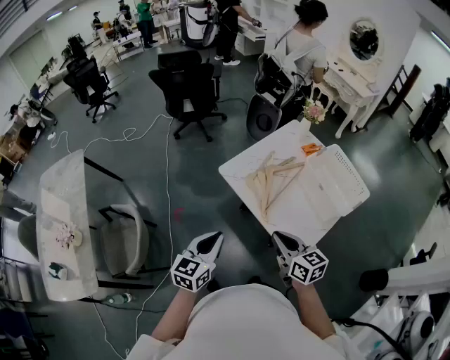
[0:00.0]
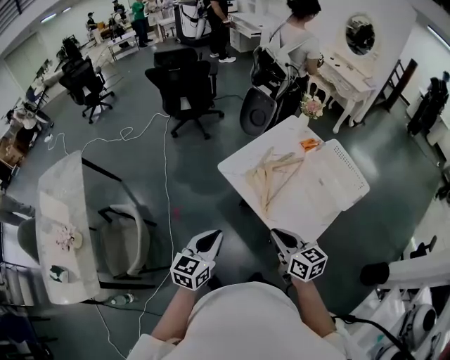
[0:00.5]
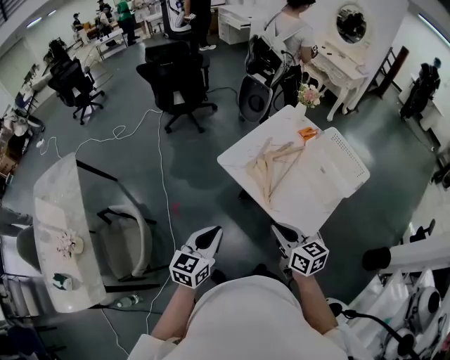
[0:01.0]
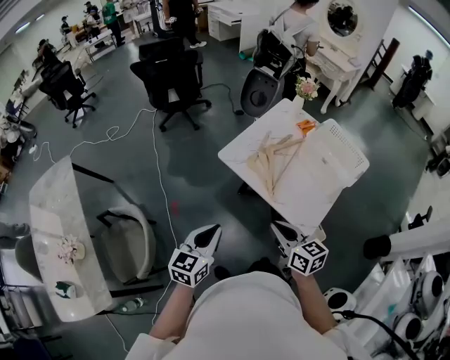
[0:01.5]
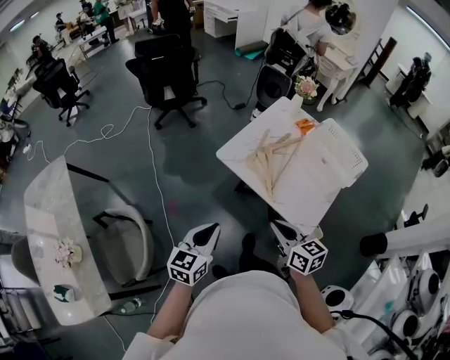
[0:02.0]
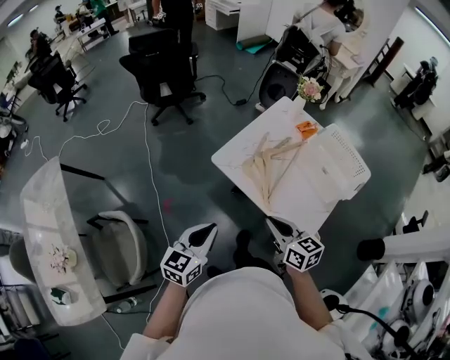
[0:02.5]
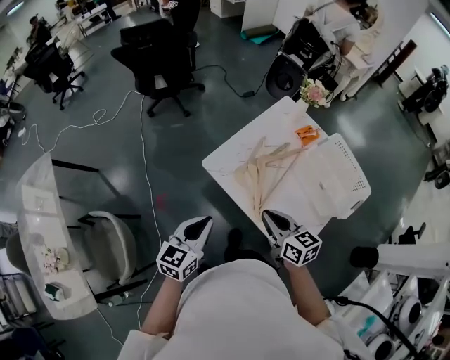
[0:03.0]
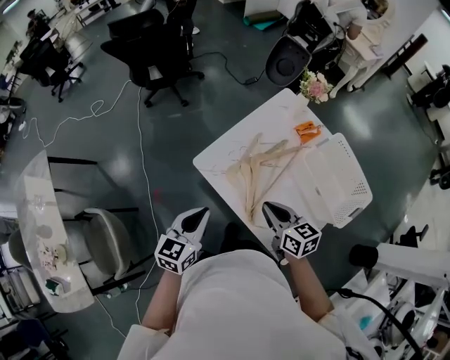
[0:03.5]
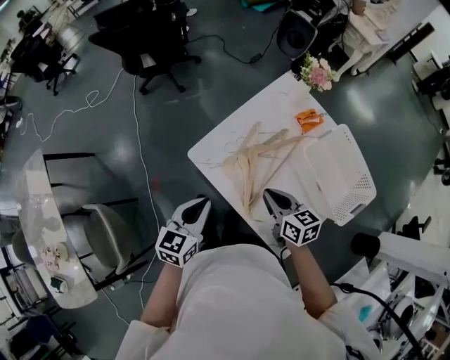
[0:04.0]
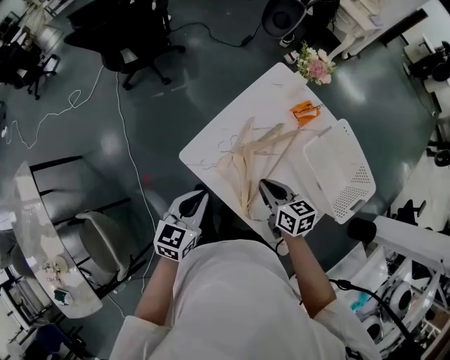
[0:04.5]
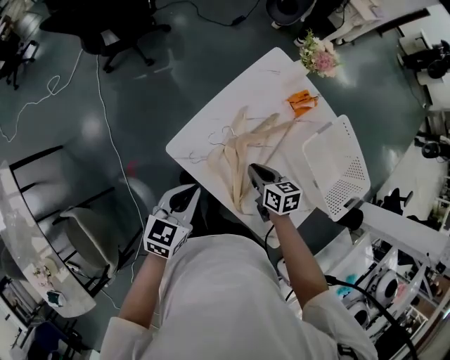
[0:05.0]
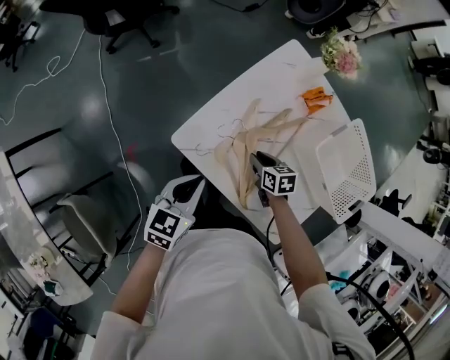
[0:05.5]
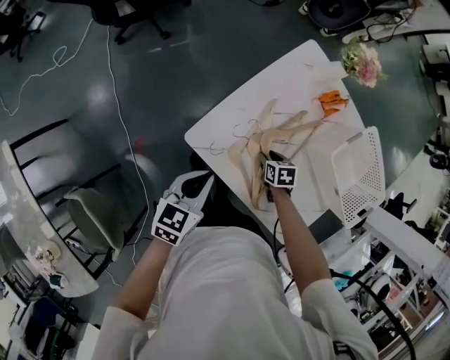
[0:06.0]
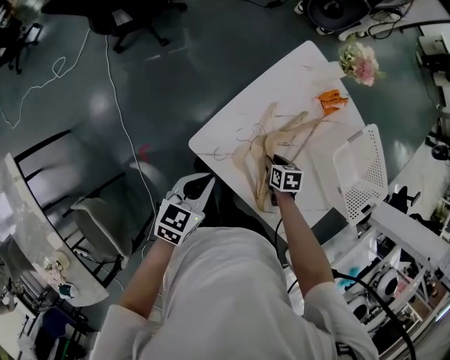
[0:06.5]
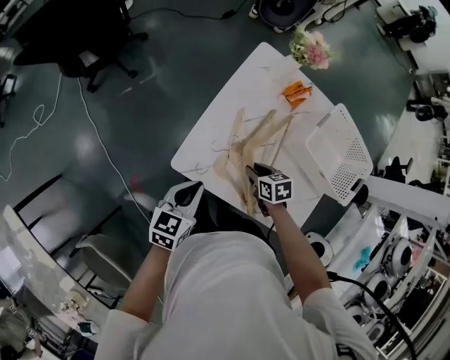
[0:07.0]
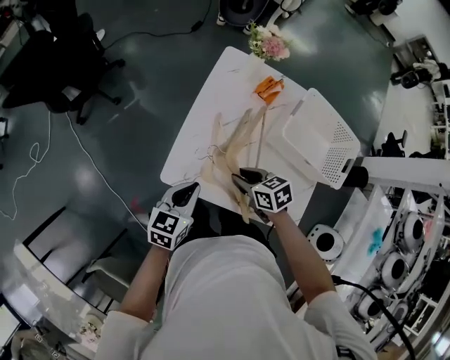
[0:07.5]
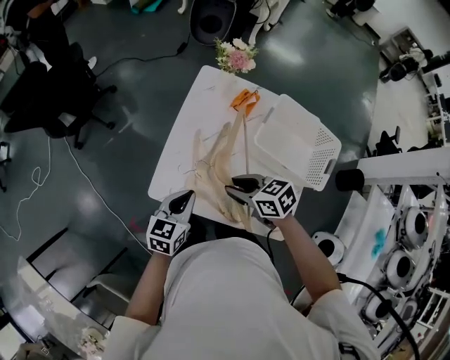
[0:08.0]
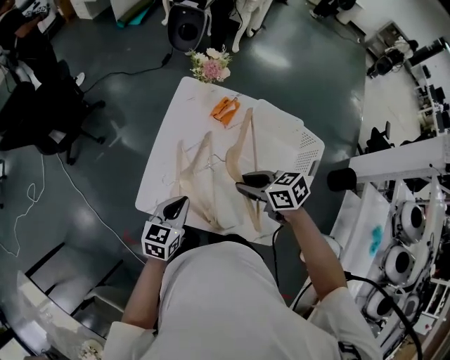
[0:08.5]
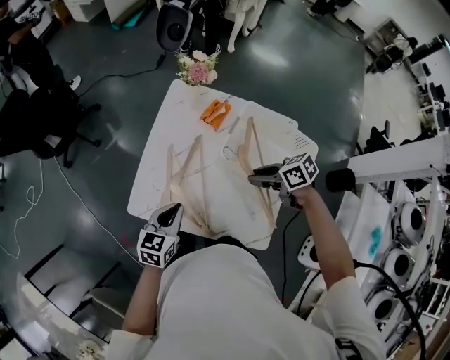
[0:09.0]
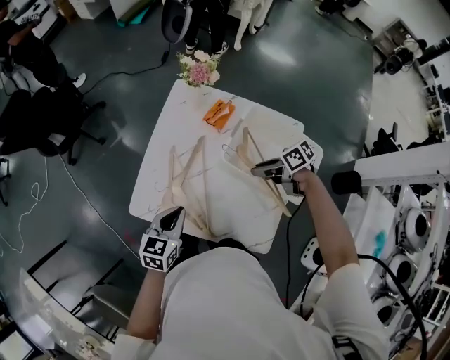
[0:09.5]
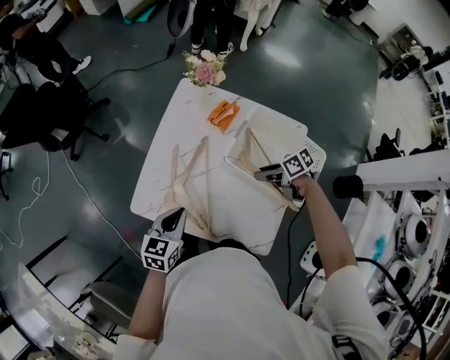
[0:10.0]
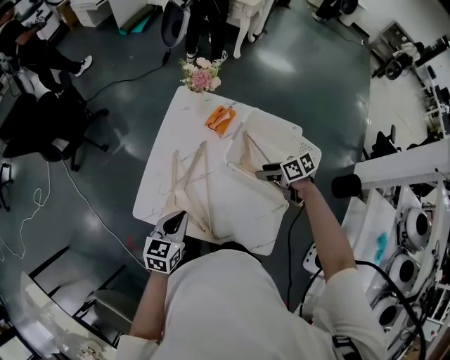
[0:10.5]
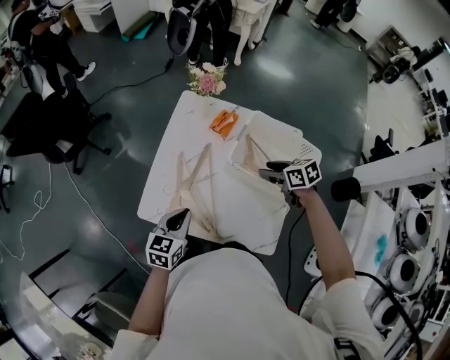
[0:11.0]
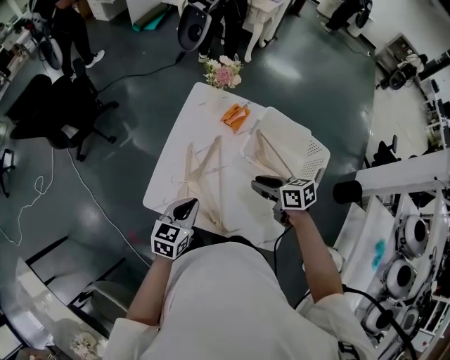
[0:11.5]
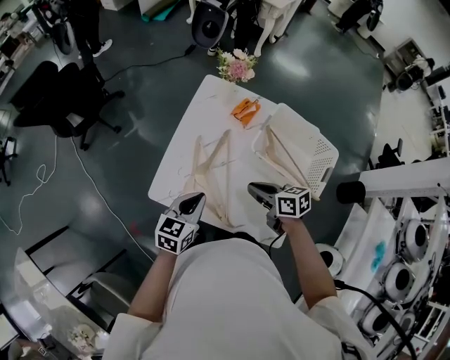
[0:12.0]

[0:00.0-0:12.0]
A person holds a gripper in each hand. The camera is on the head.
0:00.0 to 0:02.0: The two grippers go about 10 cm to the left.
0:02.0 to 0:04.0: The grippers both shift forward and to the right by some 30 cm.
0:04.0 to 0:06.0: The left gripper shifts some 15 cm forward and downward; the right gripper shifts roughly 30 cm downward and forward, angles its fingers downward, by some 40 degrees, and opens.
0:06.0 to 0:08.0: The left gripper goes about 10 cm to the right; the right gripper goes approximately 25 cm upward, and rotates approximately 30 degrees.
0:08.0 to 0:10.0: The right gripper shifts some 25 cm to the right, and changes its angle by approximately 30 degrees. The left gripper heads to the right, covering about 5 cm.
0:10.0 to 0:12.0: The right gripper moves to the left and upward, approximately 15 cm, swivels roughly 20 degrees, and closes.

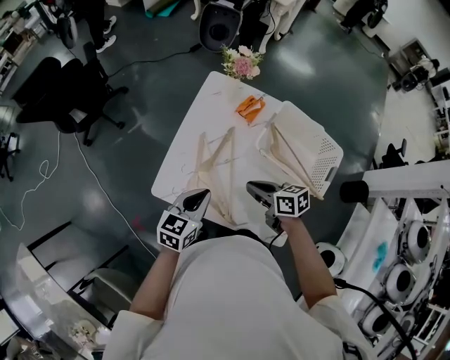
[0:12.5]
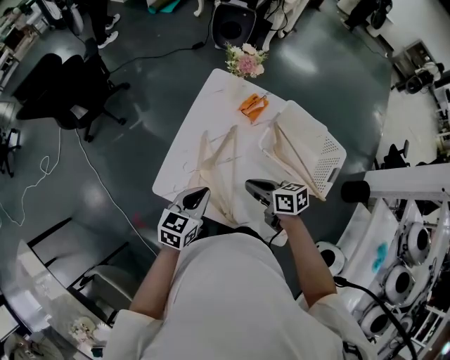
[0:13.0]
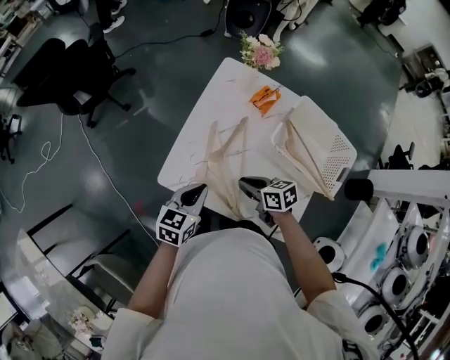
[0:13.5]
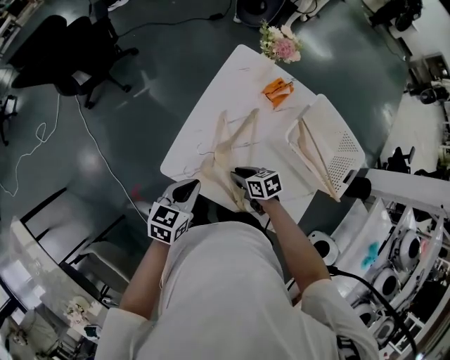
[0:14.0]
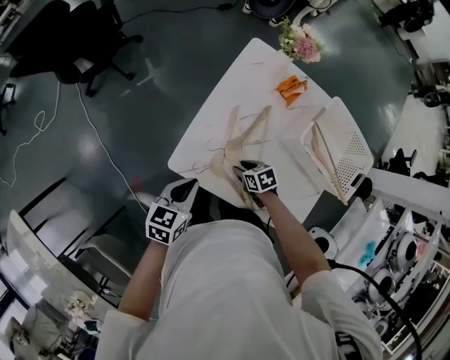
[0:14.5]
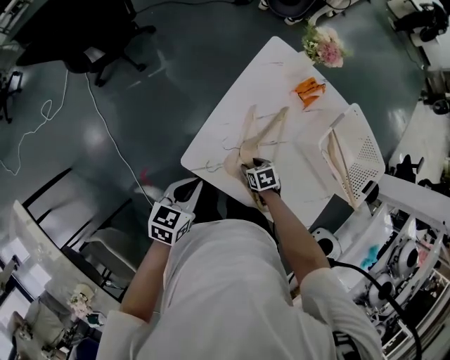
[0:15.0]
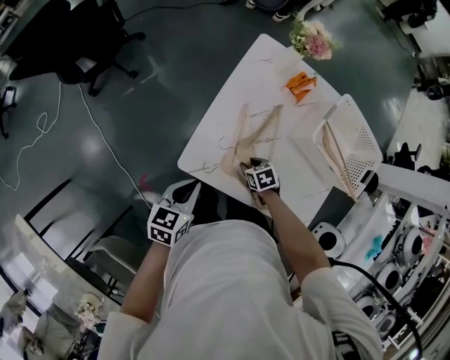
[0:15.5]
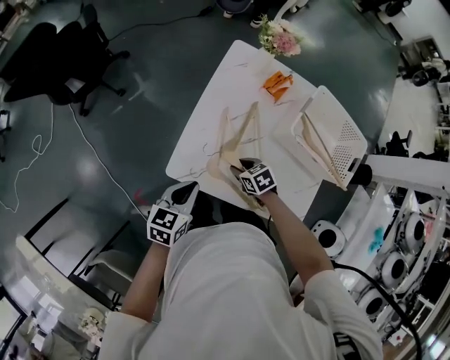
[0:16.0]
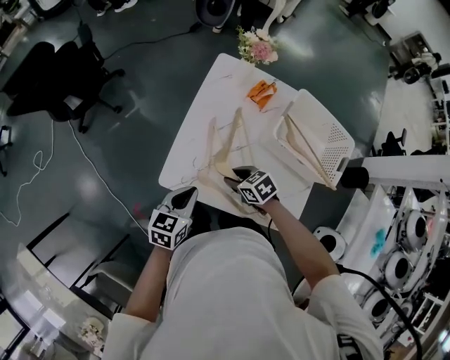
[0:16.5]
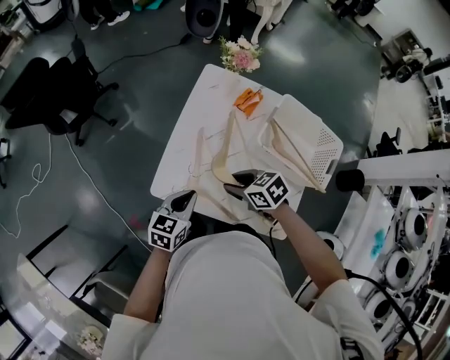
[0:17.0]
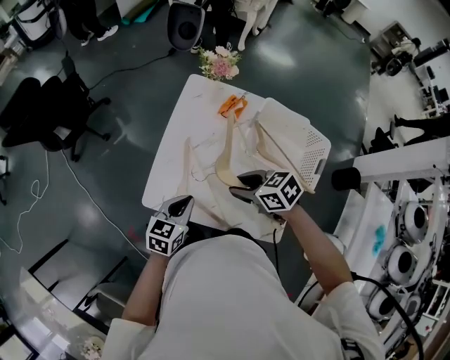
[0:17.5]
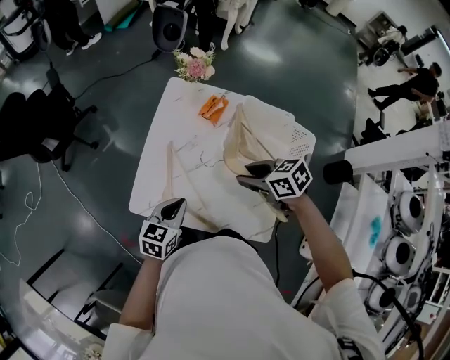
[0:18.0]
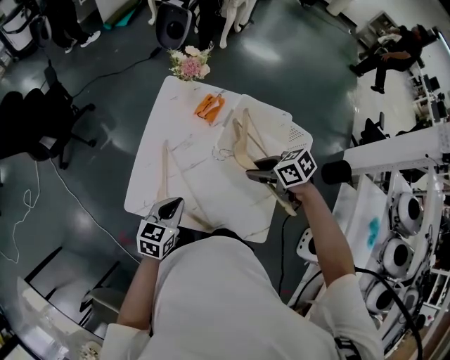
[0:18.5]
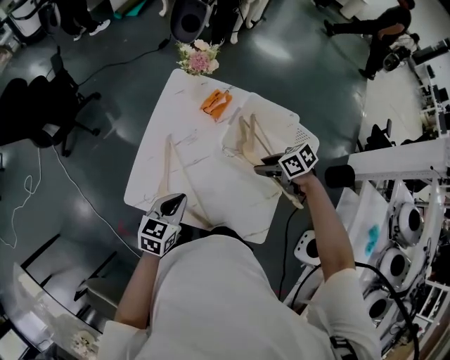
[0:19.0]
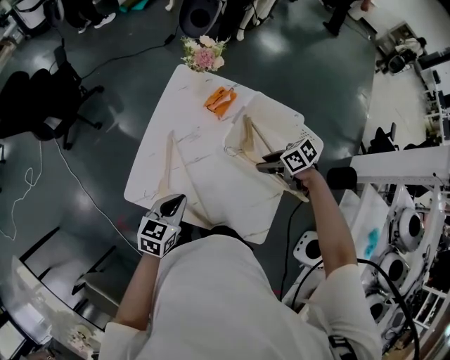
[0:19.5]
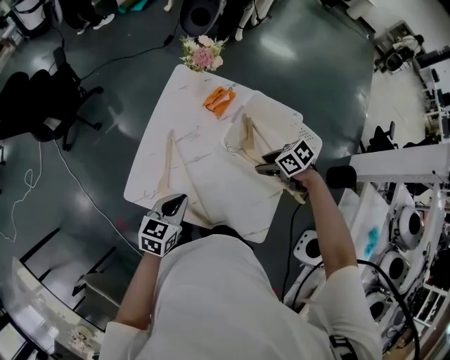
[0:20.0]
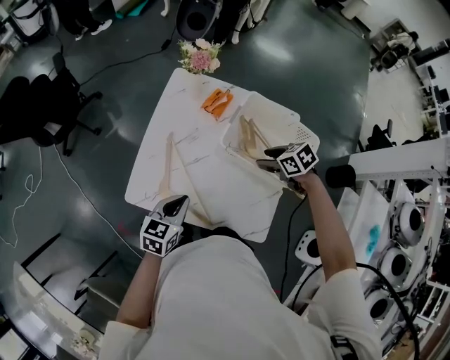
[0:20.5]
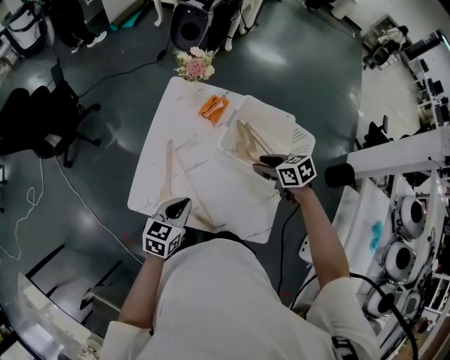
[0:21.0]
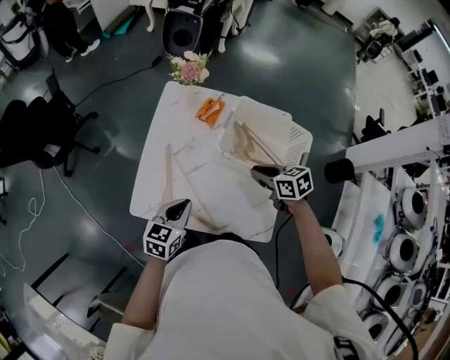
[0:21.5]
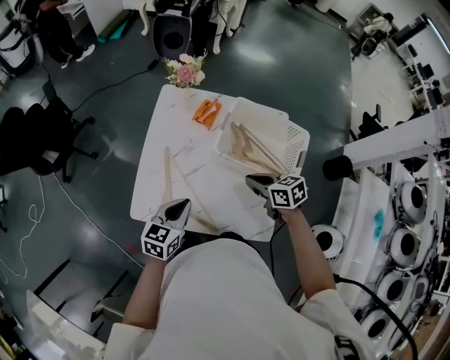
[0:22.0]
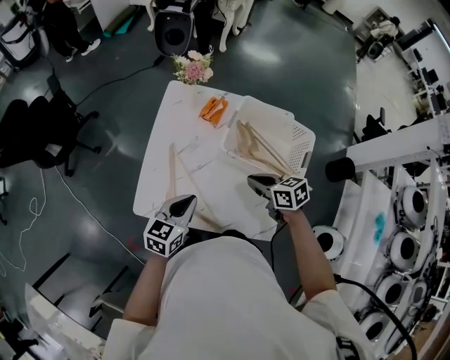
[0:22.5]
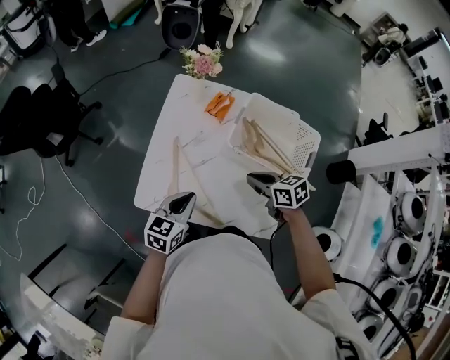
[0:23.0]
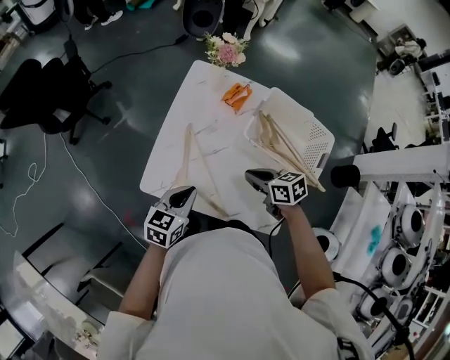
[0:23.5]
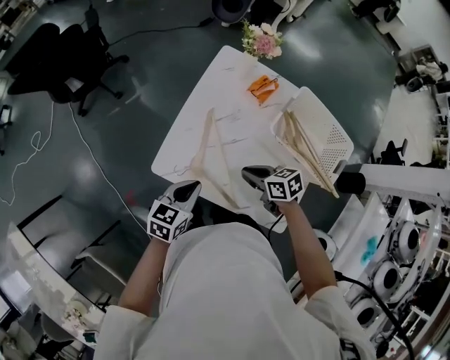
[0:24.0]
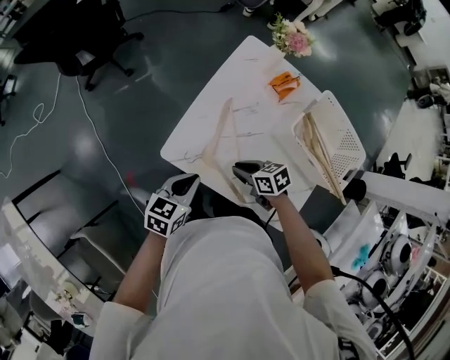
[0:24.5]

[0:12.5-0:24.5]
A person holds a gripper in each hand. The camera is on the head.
0:12.5 to 0:14.5: The right gripper moves downward and to the left, about 25 cm, turns by approximately 30 degrees, and opens; the left gripper goes approximately 15 cm to the left and downward.
0:14.5 to 0:16.5: The right gripper heads upward, covering approximately 10 cm.
0:16.5 to 0:18.5: The right gripper travels to the right and upward by some 25 cm. The left gripper goes approximately 15 cm to the right.
0:18.5 to 0:20.5: The right gripper changes place by about 10 cm.
0:20.5 to 0:22.5: The right gripper is displaced to the left and backward by about 10 cm, turns by about 20 degrees, and closes its fingers.
0:22.5 to 0:24.5: The left gripper heads to the left and downward, covering roughly 15 cm; the right gripper heads to the left and downward, covering some 25 cm, and changes its angle by some 30 degrees.

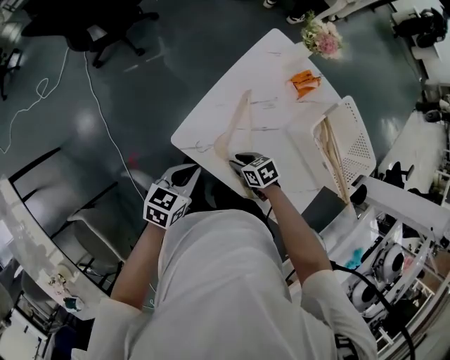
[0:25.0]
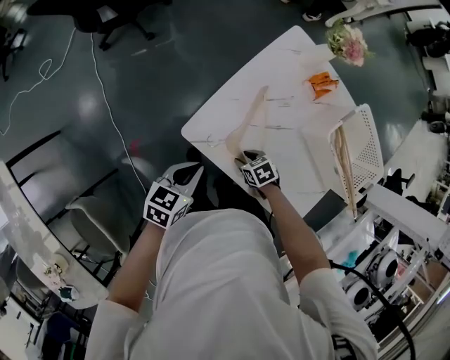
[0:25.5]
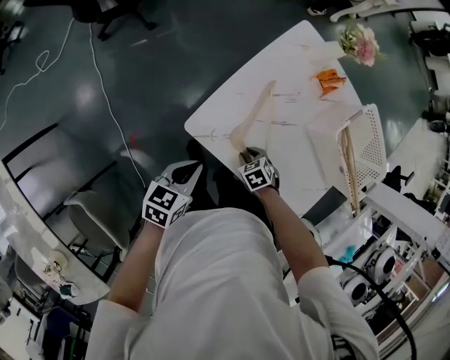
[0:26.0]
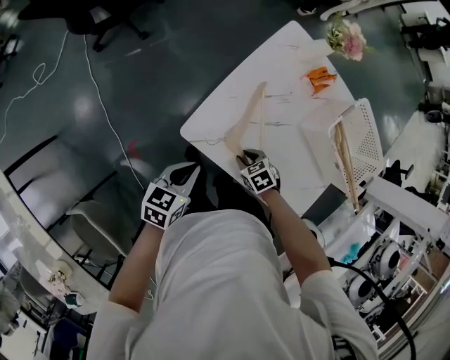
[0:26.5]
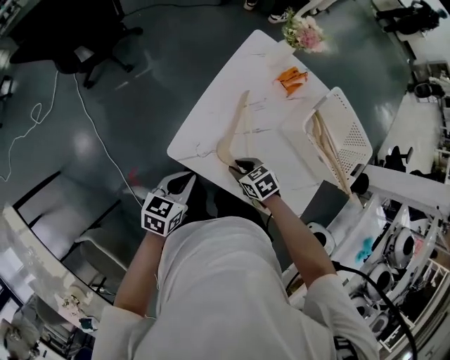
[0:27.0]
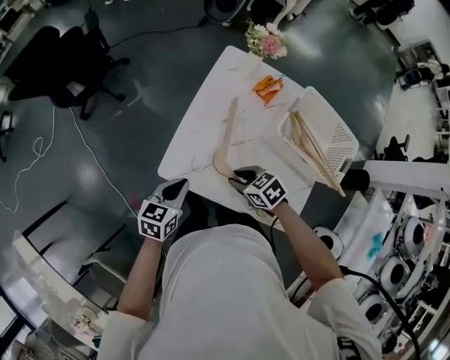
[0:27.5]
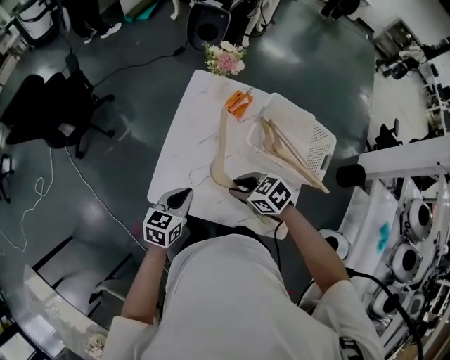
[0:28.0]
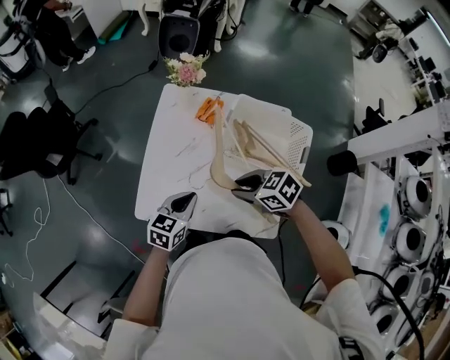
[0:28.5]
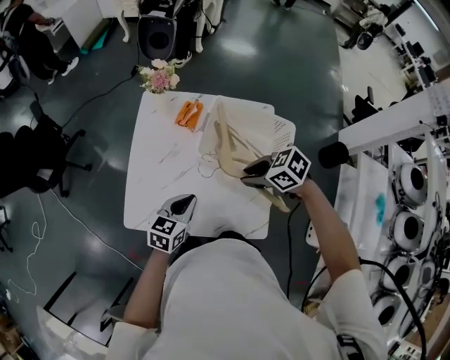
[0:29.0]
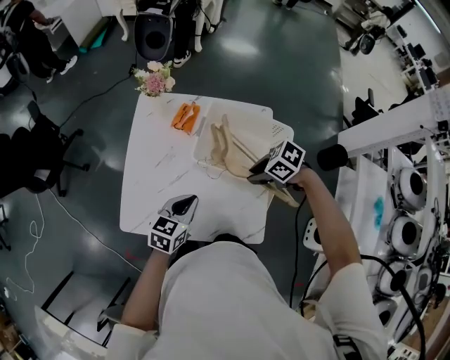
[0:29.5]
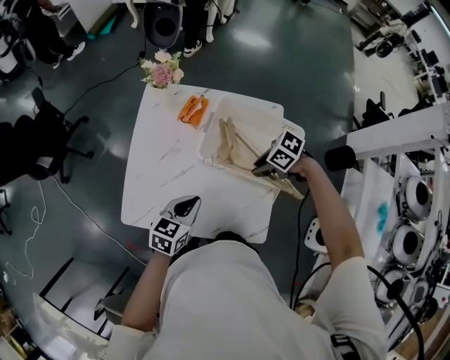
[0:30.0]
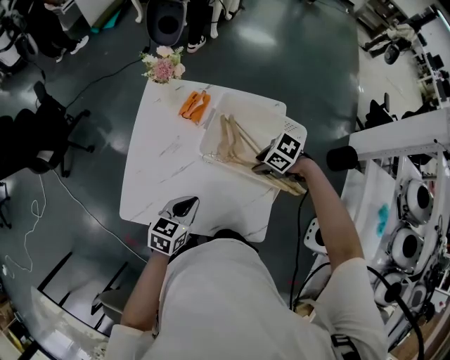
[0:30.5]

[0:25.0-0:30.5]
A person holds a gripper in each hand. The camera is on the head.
0:25.0 to 0:27.0: The right gripper travels downward and back again, about 5 cm each way.
0:27.0 to 0:28.5: The left gripper heads to the right, covering approximately 20 cm, and rotates approximately 20 degrees, while the right gripper is displaced upward and to the right by approximately 25 cm.
0:28.5 to 0:30.5: The left gripper shifts by approximately 10 cm. The right gripper changes place by about 20 cm, and changes its angle by some 20 degrees.
